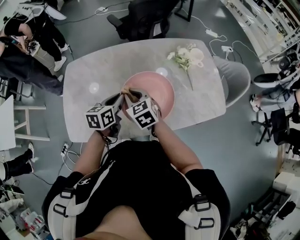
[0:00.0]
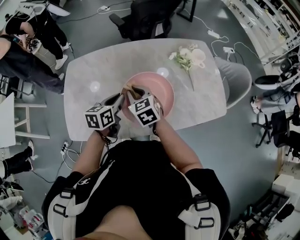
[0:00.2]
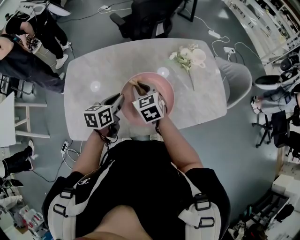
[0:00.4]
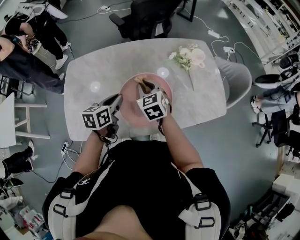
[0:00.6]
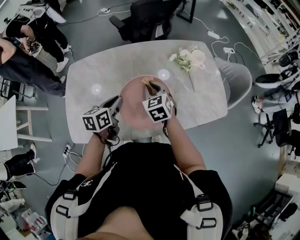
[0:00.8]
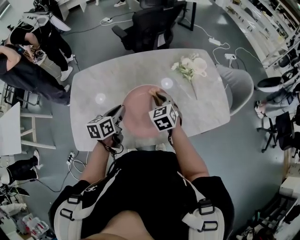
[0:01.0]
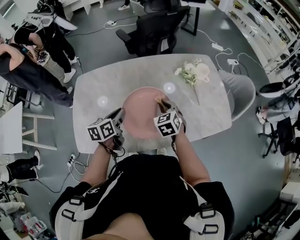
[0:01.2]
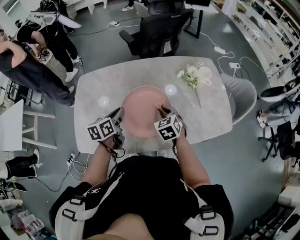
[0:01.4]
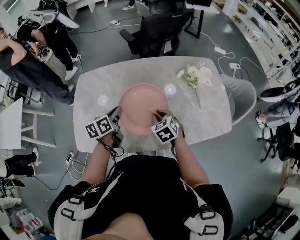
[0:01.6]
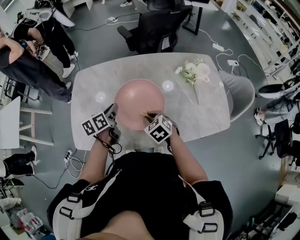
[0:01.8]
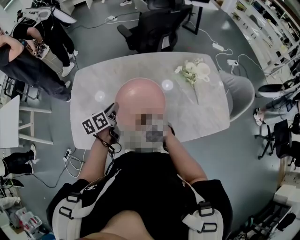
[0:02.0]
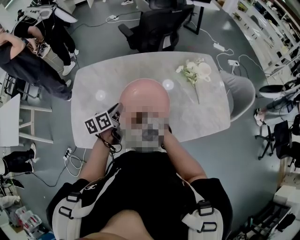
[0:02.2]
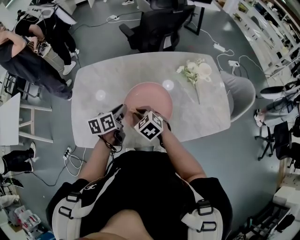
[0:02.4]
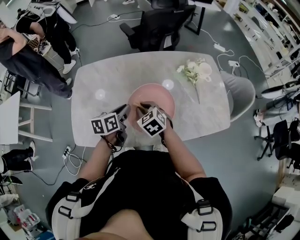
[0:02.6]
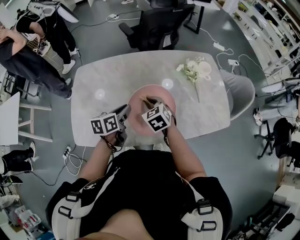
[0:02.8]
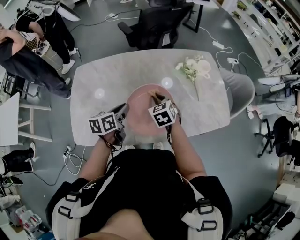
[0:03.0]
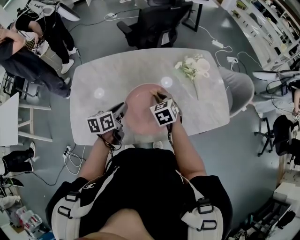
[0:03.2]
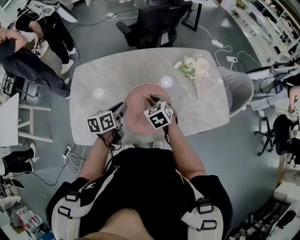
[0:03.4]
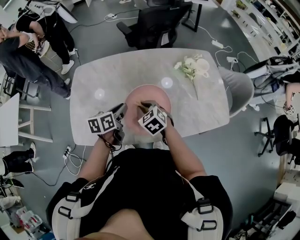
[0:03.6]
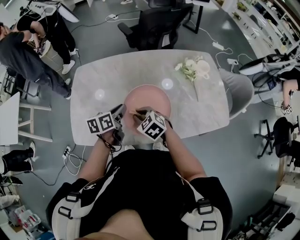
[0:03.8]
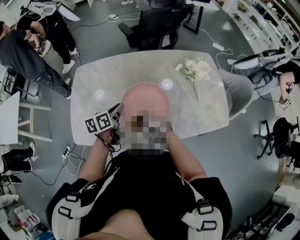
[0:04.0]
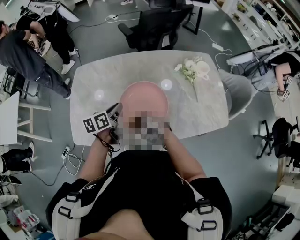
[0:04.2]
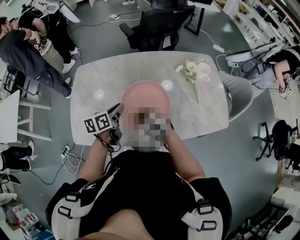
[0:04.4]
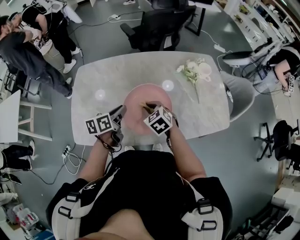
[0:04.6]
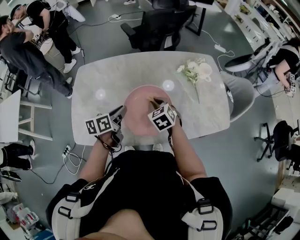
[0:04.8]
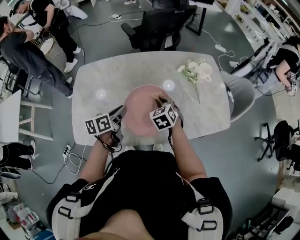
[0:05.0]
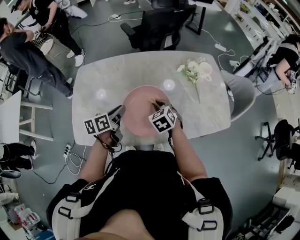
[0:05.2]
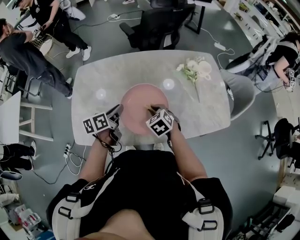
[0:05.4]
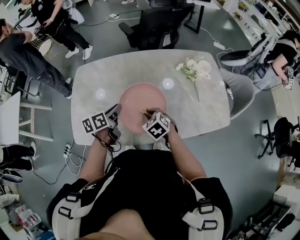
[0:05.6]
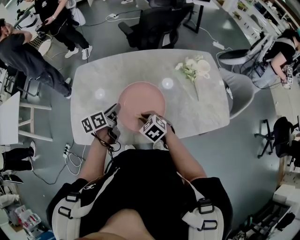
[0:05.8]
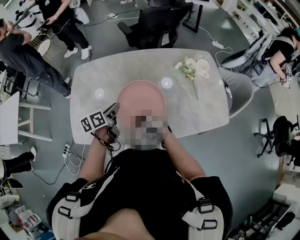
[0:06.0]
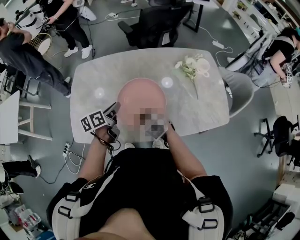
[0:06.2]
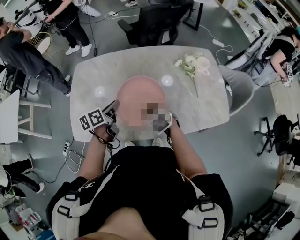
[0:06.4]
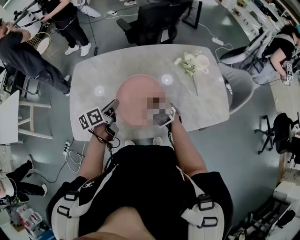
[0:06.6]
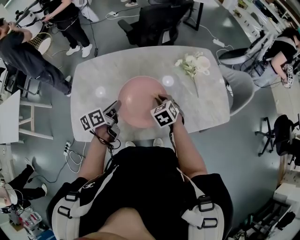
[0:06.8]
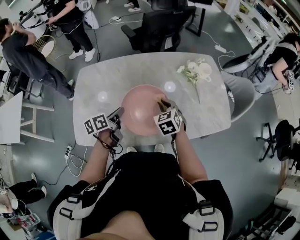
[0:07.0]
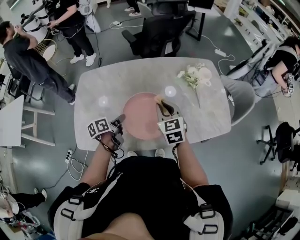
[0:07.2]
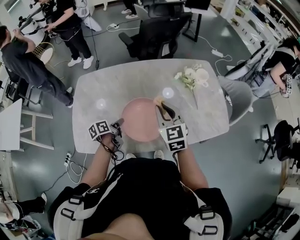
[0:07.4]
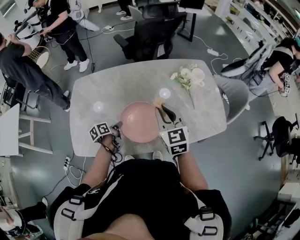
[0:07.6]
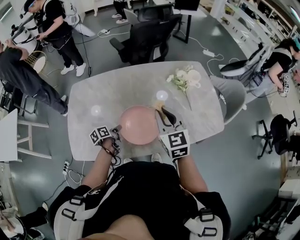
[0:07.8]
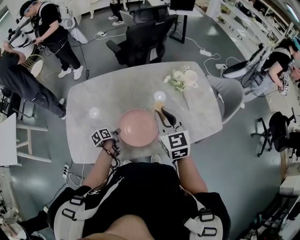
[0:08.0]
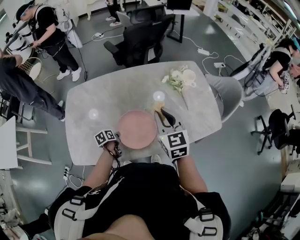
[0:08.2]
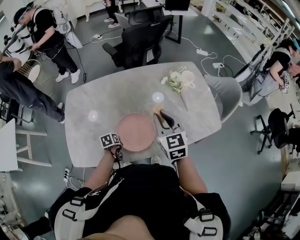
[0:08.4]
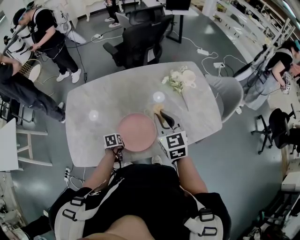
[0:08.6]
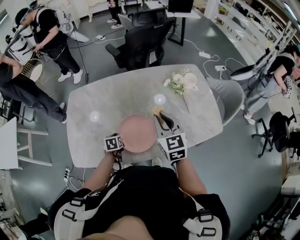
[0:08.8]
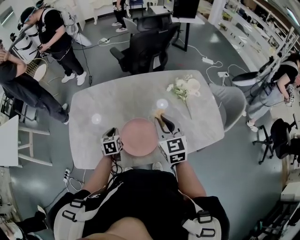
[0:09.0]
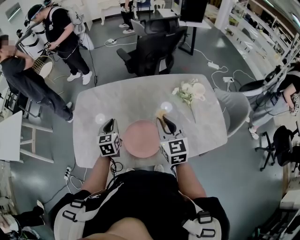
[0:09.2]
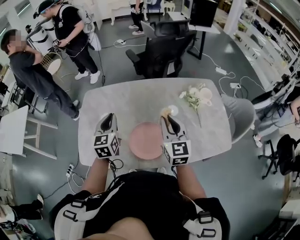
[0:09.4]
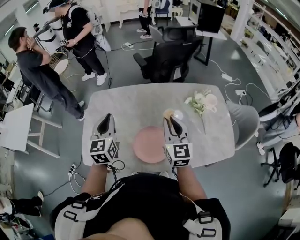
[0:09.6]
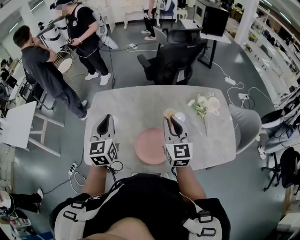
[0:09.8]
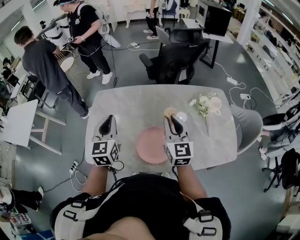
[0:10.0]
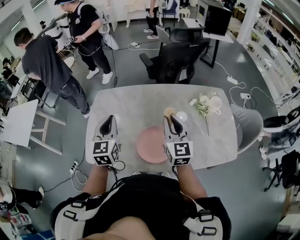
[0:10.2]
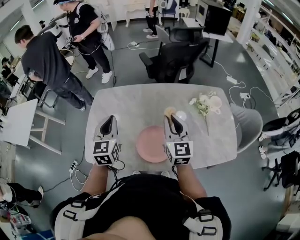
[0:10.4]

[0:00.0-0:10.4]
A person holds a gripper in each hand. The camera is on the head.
0:00.0 to 0:01.4: The left gripper travels to the left by some 5 cm, while the right gripper heads to the right and downward, covering approximately 10 cm.
0:01.4 to 0:03.0: The right gripper goes to the left and returns, some 10 cm each way.
0:03.0 to 0:04.4: The right gripper is displaced to the left and backward by some 15 cm, and rotates some 30 degrees.
0:04.4 to 0:06.0: The right gripper travels forward and back again, approximately 10 cm each way.
0:06.0 to 0:07.4: The right gripper travels upward, to the right and forward by some 20 cm, and tilts its fingers about 30 degrees upward. Meanwhile the left gripper moves downward, roughly 10 cm.
0:07.4 to 0:09.0: The left gripper goes downward and returns, about 10 cm each way, and twists roughly 50 degrees clockwise, seen from behind.
0:09.0 to 0:10.4: The left gripper moves upward, about 25 cm, and changes its angle by some 30 degrees, while the right gripper ends up some 5 cm from where it was.

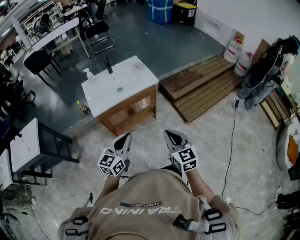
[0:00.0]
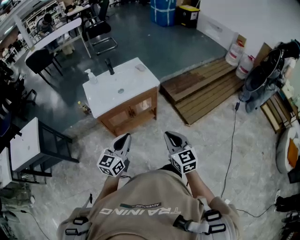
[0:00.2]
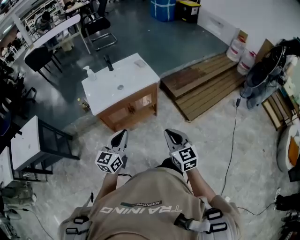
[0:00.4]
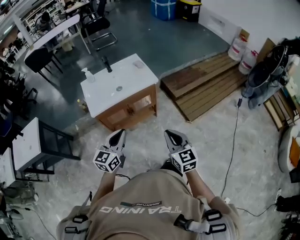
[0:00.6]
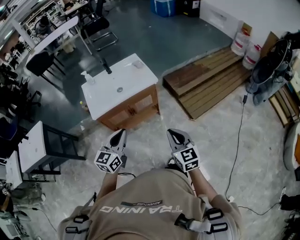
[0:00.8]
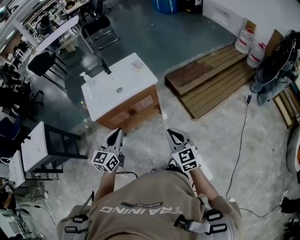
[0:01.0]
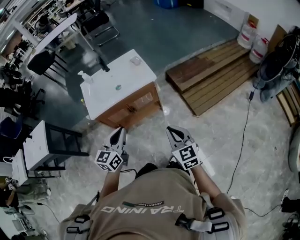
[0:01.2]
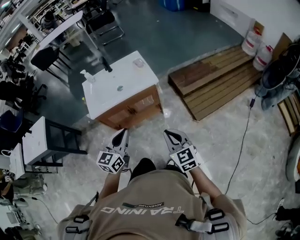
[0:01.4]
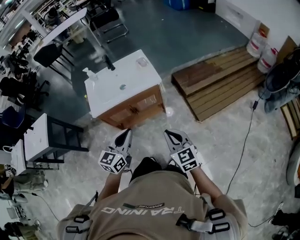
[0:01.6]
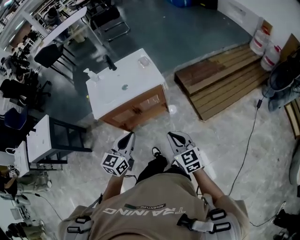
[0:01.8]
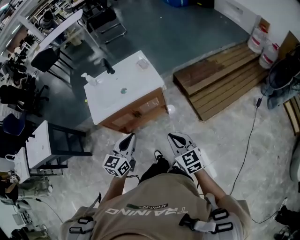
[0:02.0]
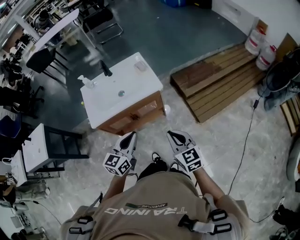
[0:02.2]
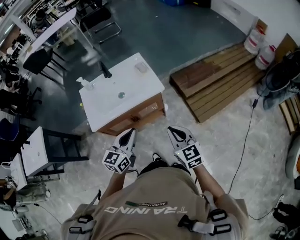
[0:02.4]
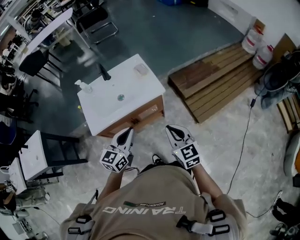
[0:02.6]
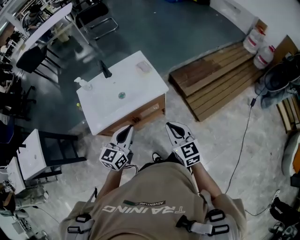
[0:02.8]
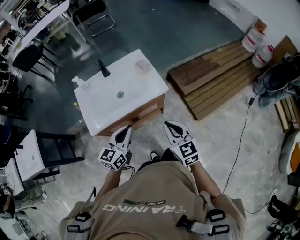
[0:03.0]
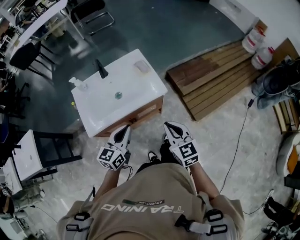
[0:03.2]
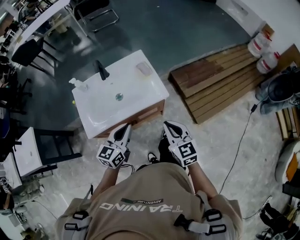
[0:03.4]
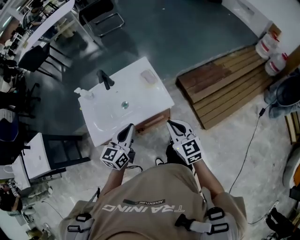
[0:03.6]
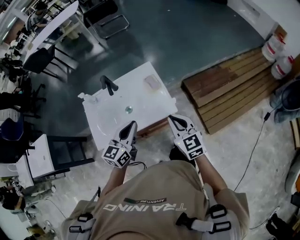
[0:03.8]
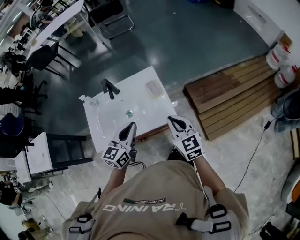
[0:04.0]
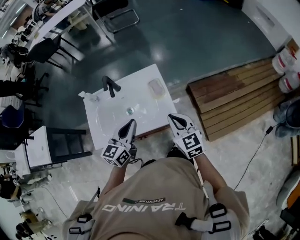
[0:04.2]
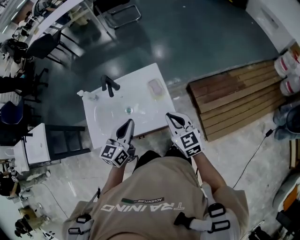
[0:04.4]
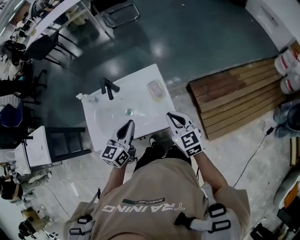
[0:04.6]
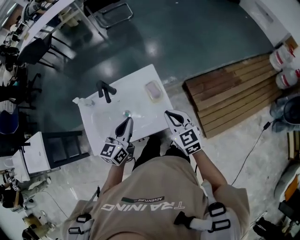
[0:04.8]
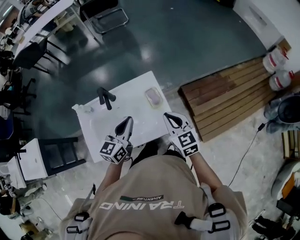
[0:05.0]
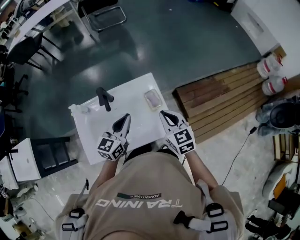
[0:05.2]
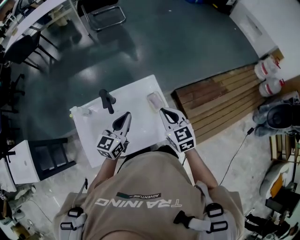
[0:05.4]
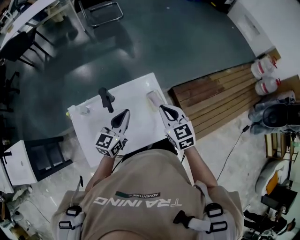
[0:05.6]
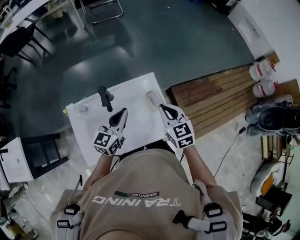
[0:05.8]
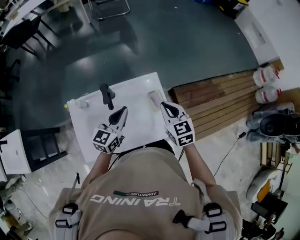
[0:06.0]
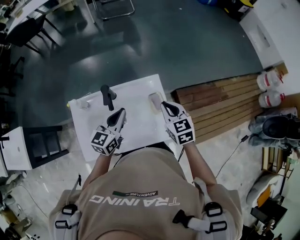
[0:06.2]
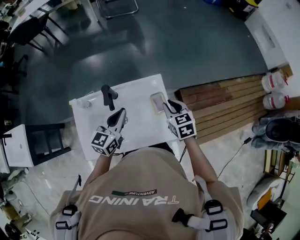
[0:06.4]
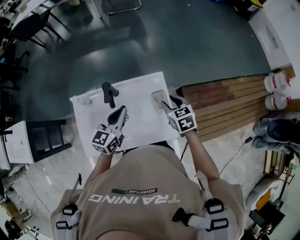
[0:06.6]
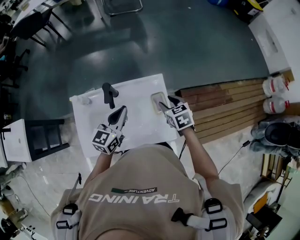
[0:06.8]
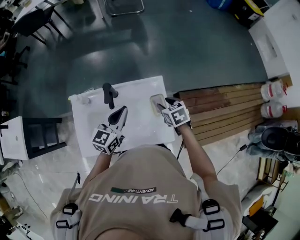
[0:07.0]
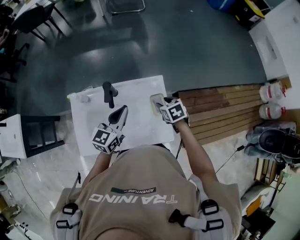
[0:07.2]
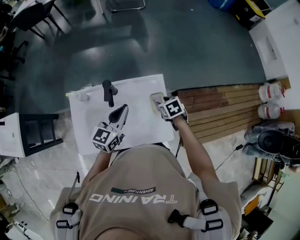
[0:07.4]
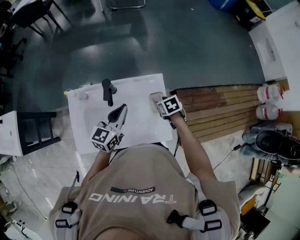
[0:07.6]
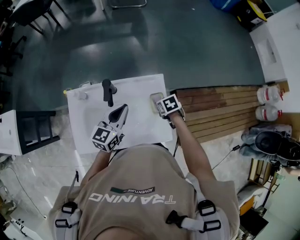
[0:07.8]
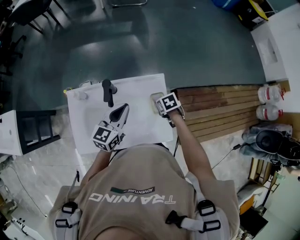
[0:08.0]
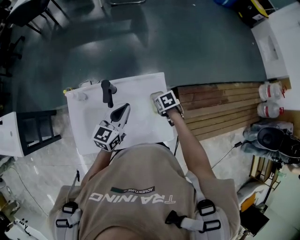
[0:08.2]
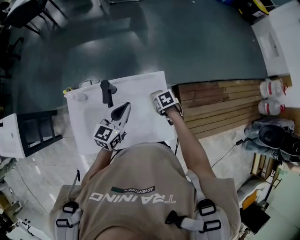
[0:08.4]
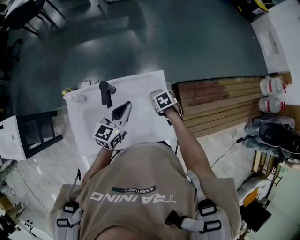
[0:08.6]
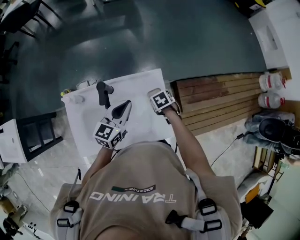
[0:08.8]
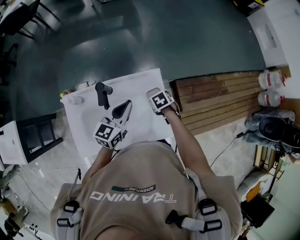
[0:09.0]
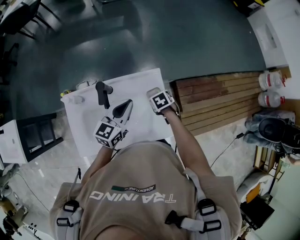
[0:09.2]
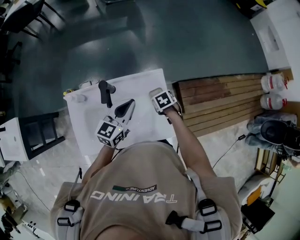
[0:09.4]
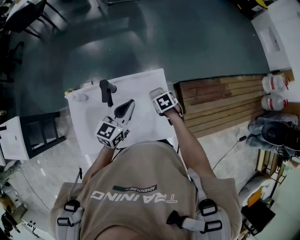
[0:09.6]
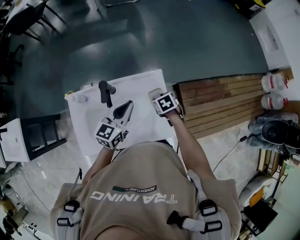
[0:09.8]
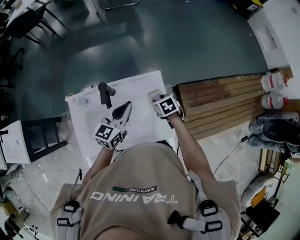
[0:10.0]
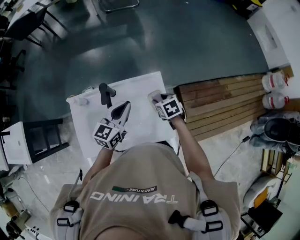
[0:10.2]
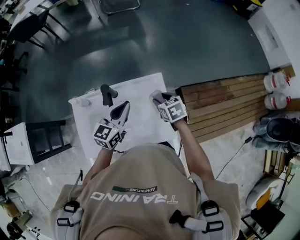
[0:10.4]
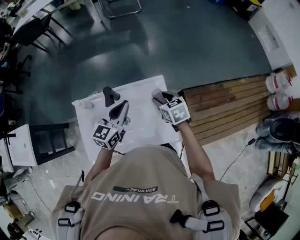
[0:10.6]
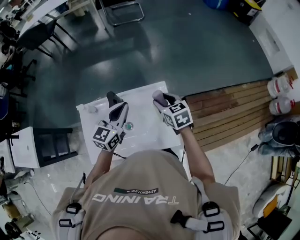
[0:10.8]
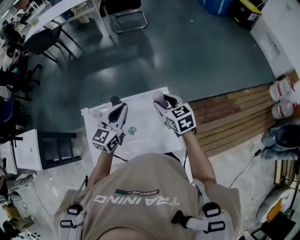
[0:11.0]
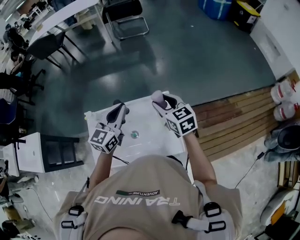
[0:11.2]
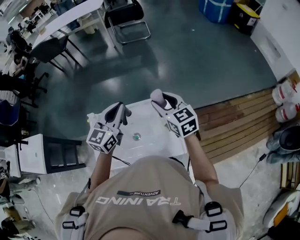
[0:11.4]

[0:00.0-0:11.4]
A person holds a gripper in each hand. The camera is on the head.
0:00.0 to 0:01.4: Both grippers move forward and to the right, roughly 10 cm.
0:01.4 to 0:02.8: Both grippers travel together forward, approximately 15 cm.
0:02.8 to 0:04.2: Both grippers move forward, roughly 25 cm.
0:04.2 to 0:05.6: Both grippers move forward and to the left, about 15 cm.
0:05.6 to 0:07.2: The right gripper is displaced downward and forward by roughly 15 cm, tips its fingers downward by approximately 30 degrees, and opens its fingers.
0:07.2 to 0:08.6: The right gripper is displaced downward by some 10 cm, and swivels approximately 20 degrees.
0:08.6 to 0:10.0: The right gripper moves upward, approximately 5 cm.
0:10.0 to 0:11.4: The left gripper travels upward and to the left by about 15 cm. The right gripper shifts about 25 cm upward, and angles its fingers upward, by about 50 degrees.

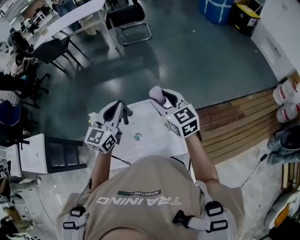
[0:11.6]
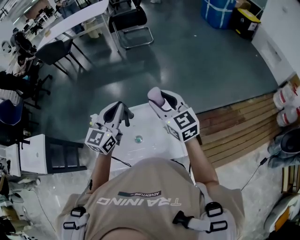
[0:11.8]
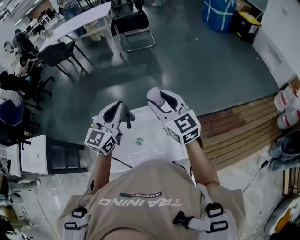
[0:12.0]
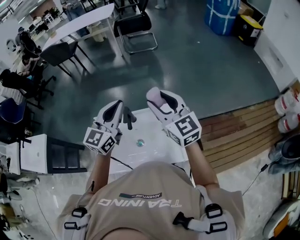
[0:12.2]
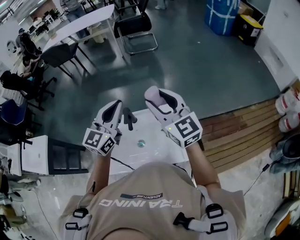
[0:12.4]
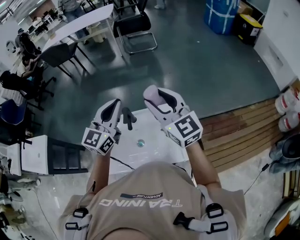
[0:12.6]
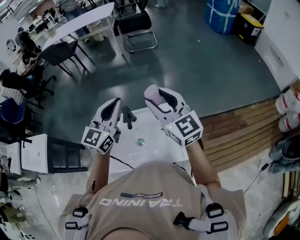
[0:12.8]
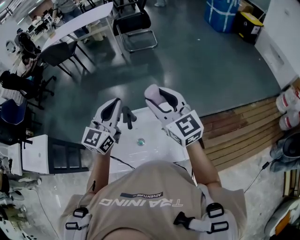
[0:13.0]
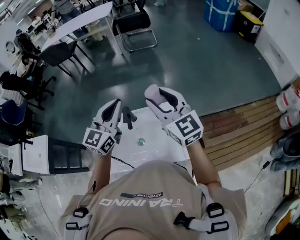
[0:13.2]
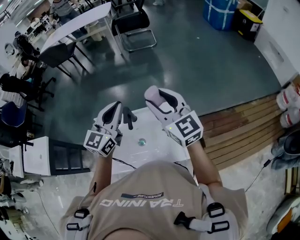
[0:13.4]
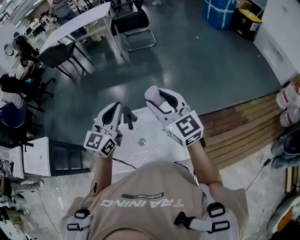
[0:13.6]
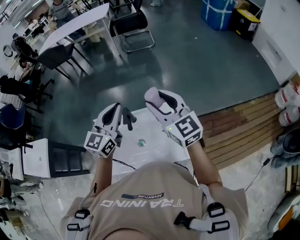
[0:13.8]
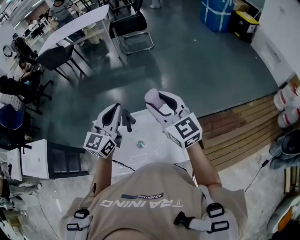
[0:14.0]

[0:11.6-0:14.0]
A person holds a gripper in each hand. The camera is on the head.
0:11.6 to 0:12.8: The right gripper travels upward by roughly 10 cm. The left gripper shifts some 5 cm upward.
0:12.8 to 0:14.0: The grippers stay close to where they were, moving slightly.
